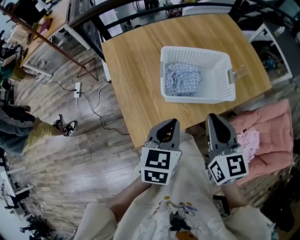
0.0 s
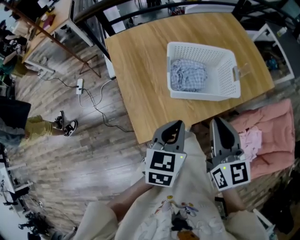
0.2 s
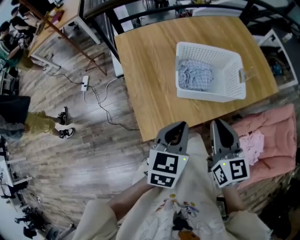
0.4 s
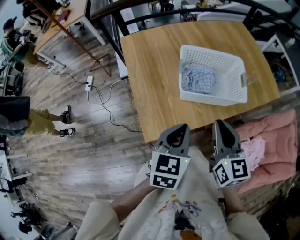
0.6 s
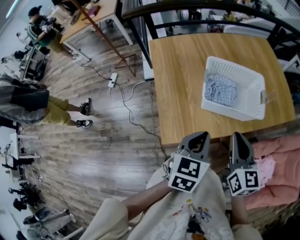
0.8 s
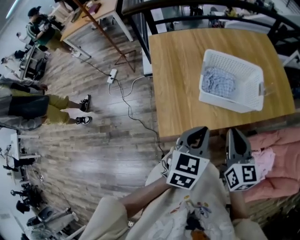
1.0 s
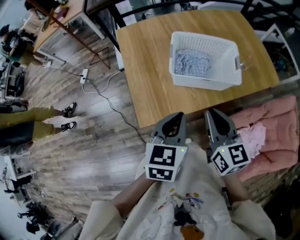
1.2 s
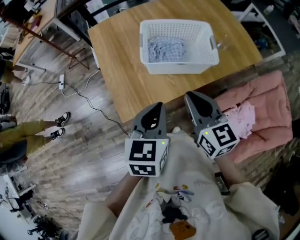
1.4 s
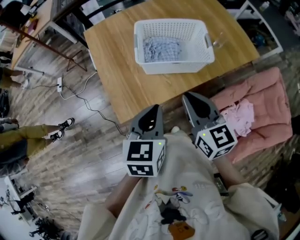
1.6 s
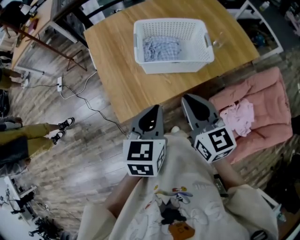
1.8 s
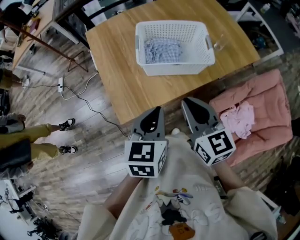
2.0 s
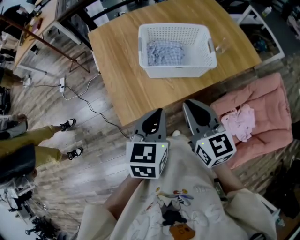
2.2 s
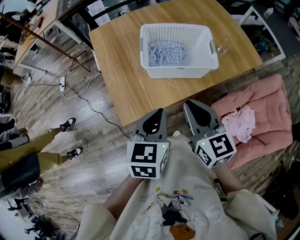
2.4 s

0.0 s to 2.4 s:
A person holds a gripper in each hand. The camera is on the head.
0.0 to 1.2 s: Both grippers travel together backward, roughly 5 cm.
1.2 to 2.4 s: The left gripper shifts by about 5 cm.

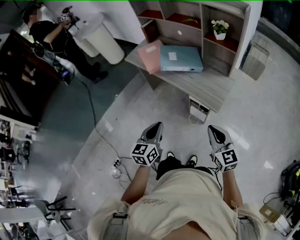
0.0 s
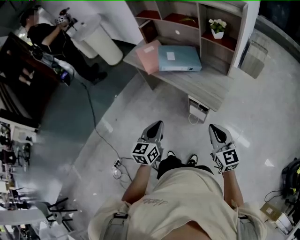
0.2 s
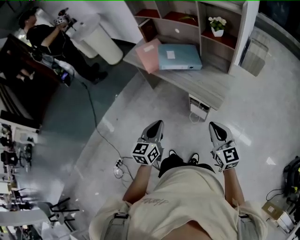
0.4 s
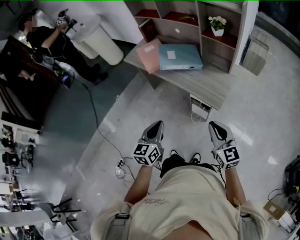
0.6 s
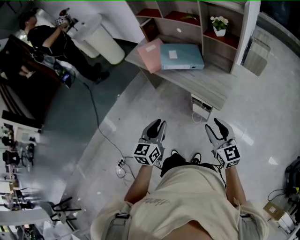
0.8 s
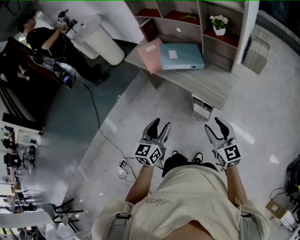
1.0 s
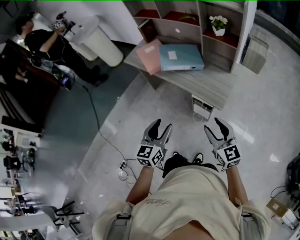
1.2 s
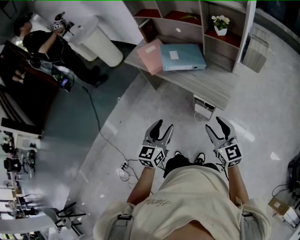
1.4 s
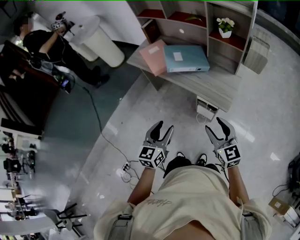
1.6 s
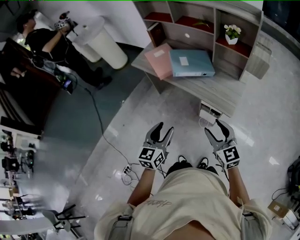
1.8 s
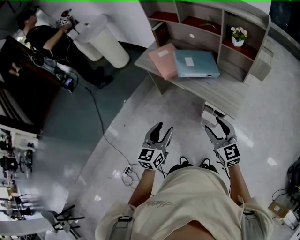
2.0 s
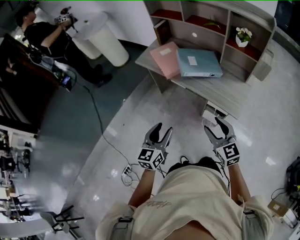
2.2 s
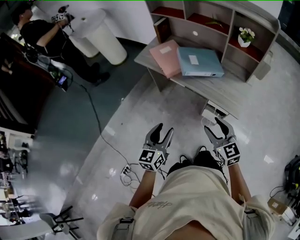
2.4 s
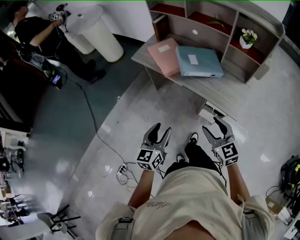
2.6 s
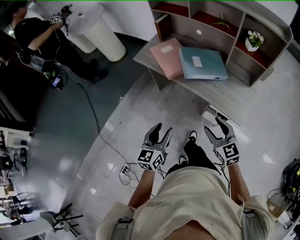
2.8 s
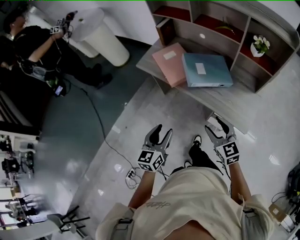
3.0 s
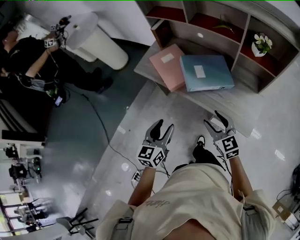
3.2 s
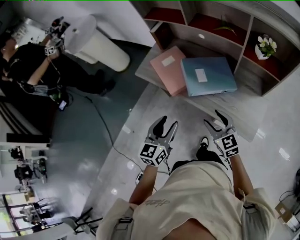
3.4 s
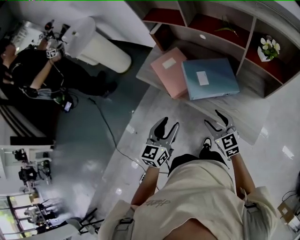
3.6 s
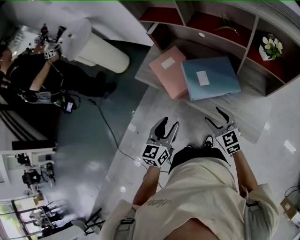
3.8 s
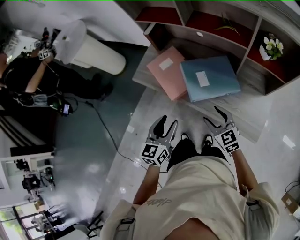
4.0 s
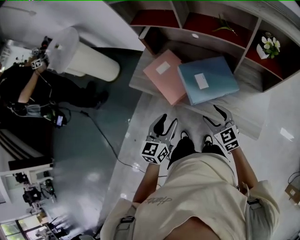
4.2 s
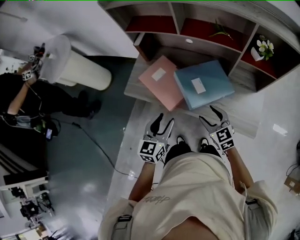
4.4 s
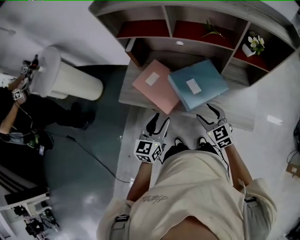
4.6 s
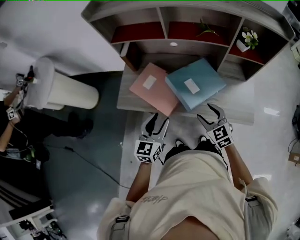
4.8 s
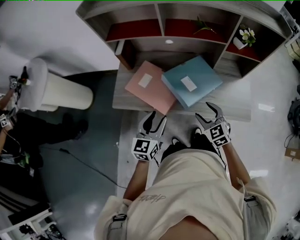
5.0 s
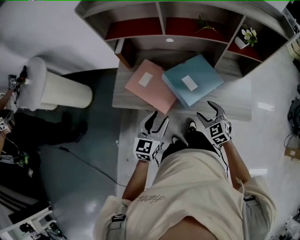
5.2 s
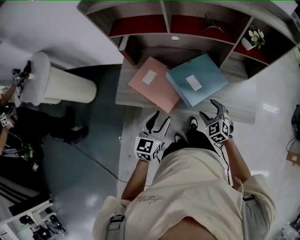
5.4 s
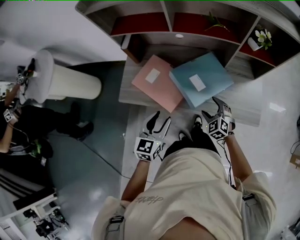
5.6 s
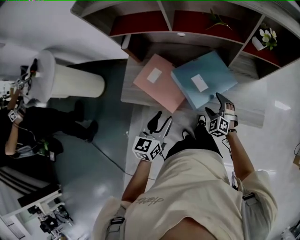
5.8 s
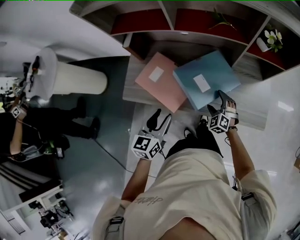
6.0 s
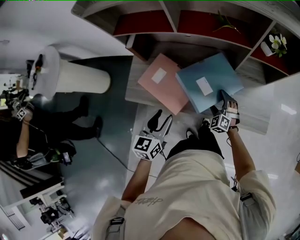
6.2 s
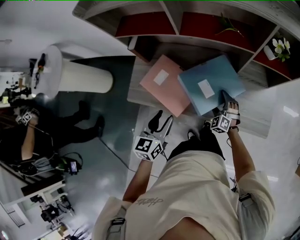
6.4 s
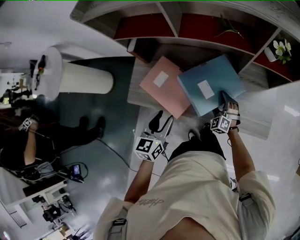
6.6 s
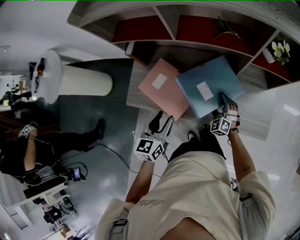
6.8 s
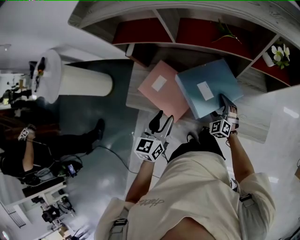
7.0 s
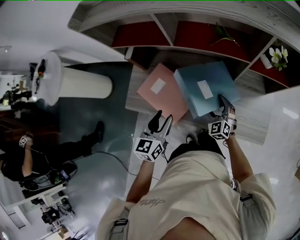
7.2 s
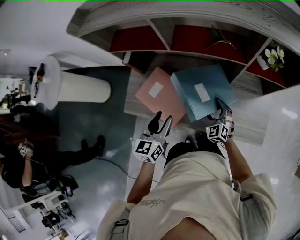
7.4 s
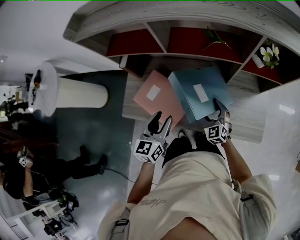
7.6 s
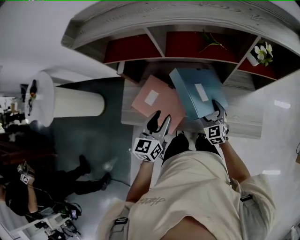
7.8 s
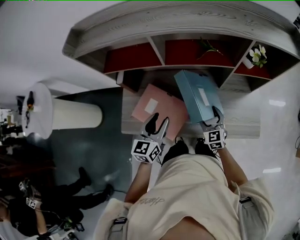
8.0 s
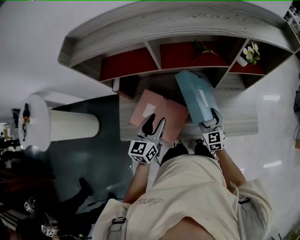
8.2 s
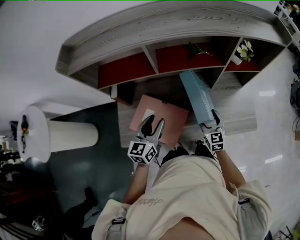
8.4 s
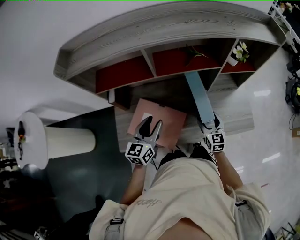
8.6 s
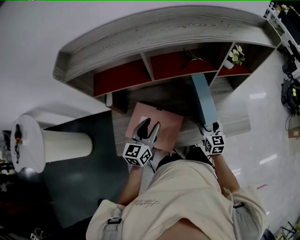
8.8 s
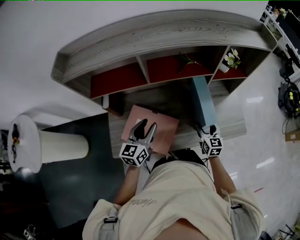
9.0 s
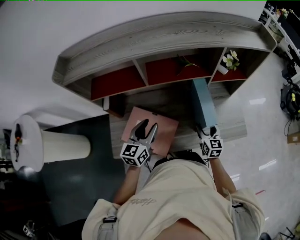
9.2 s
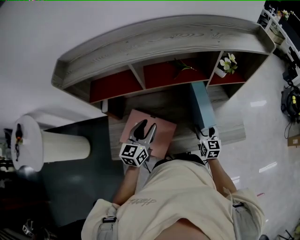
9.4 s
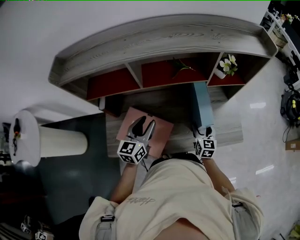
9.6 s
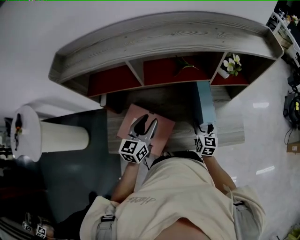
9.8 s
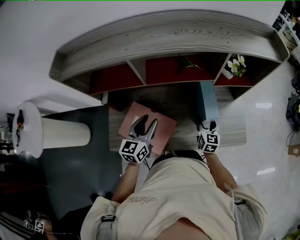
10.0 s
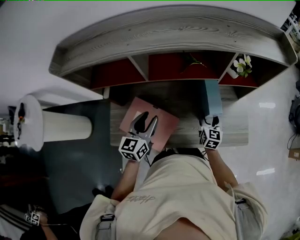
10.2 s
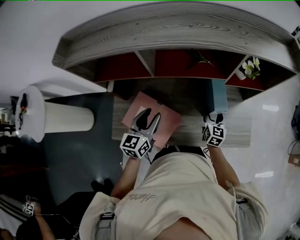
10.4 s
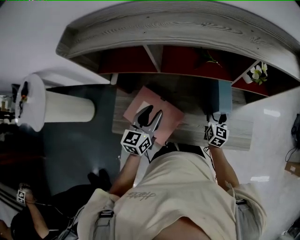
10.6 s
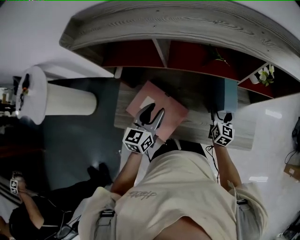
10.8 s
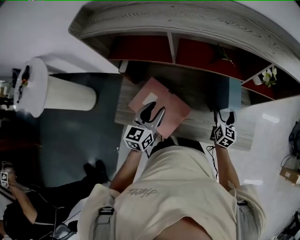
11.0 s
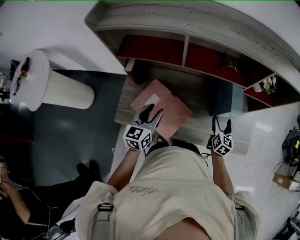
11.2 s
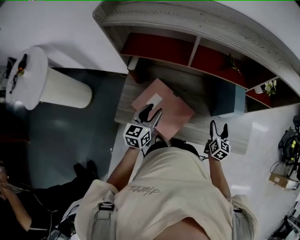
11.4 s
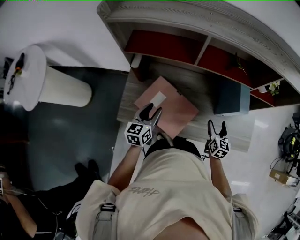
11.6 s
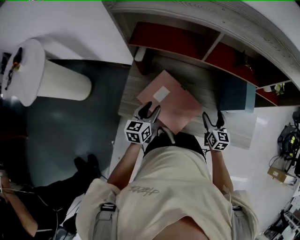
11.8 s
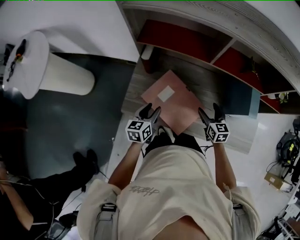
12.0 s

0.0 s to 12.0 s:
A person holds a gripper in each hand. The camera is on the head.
0.0 to 1.6 s: The left gripper opens; the right gripper moves to the left, some 5 cm, and opens.
1.6 to 3.0 s: Both grippers move forward and to the left, approximately 20 cm.
3.0 to 4.4 s: The grippers both shift forward by about 25 cm.
4.4 to 6.0 s: The right gripper is displaced downward and forward by roughly 20 cm, changes its angle by some 40 degrees, and opens its fingers. The left gripper moves forward, roughly 5 cm.
6.0 to 7.6 s: The right gripper goes some 5 cm upward, and changes its angle by roughly 20 degrees; the left gripper shifts some 10 cm forward.
7.6 to 9.0 s: The left gripper travels forward by approximately 10 cm, and rotates about 20 degrees. The right gripper shifts approximately 5 cm to the right, and twists roughly 40 degrees clockwise, seen from behind.
9.0 to 10.4 s: The right gripper goes about 10 cm forward.
10.4 to 12.0 s: The right gripper goes roughly 20 cm to the left, and changes its angle by some 30 degrees. Meanwhile the left gripper heads to the left, downward and backward, covering some 20 cm, and changes its angle by some 20 degrees.

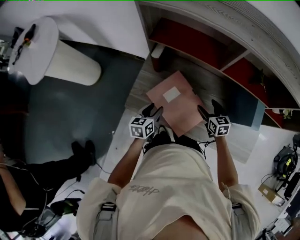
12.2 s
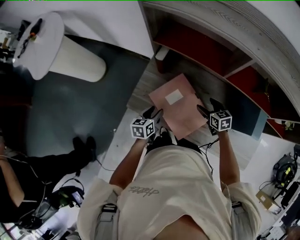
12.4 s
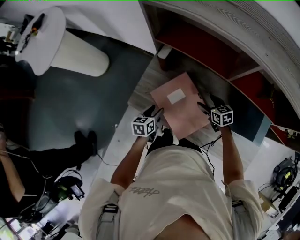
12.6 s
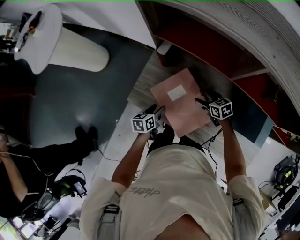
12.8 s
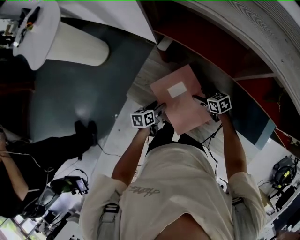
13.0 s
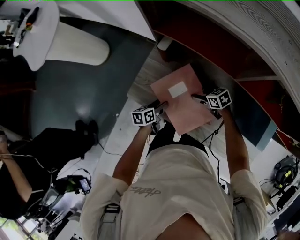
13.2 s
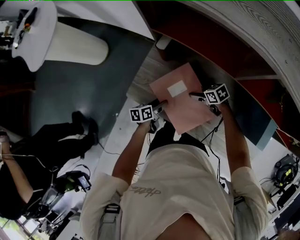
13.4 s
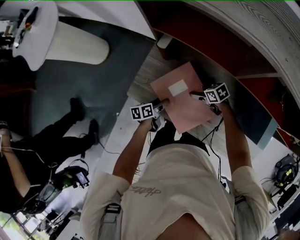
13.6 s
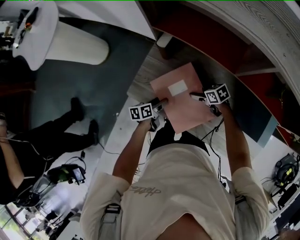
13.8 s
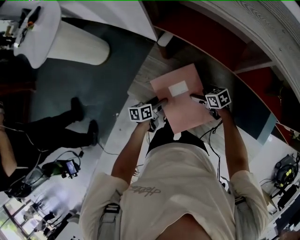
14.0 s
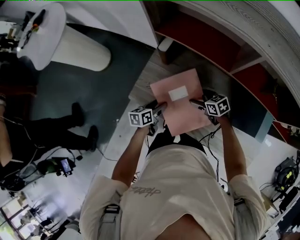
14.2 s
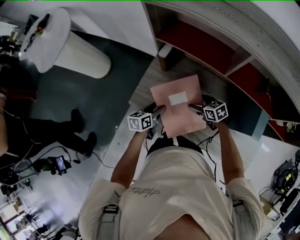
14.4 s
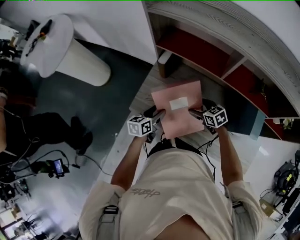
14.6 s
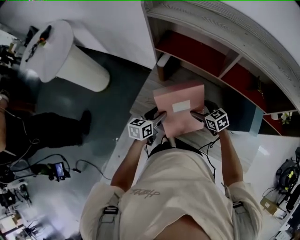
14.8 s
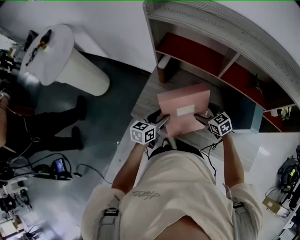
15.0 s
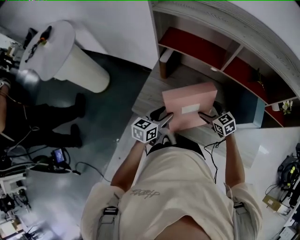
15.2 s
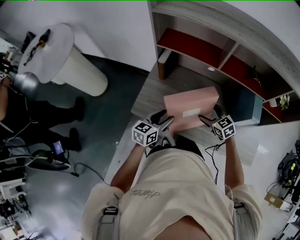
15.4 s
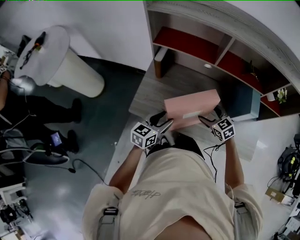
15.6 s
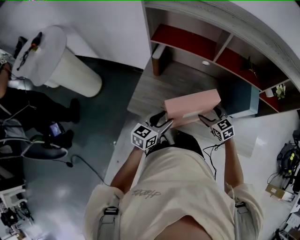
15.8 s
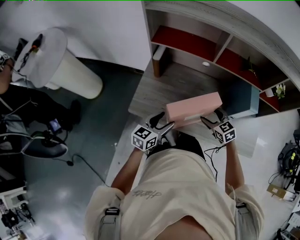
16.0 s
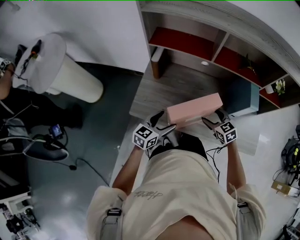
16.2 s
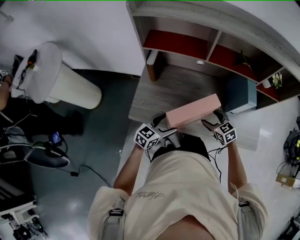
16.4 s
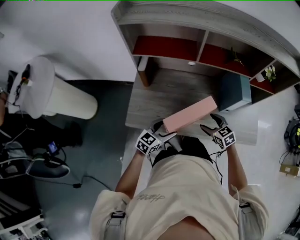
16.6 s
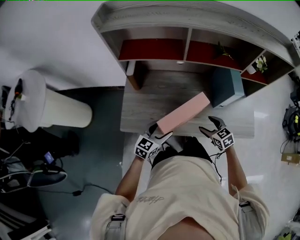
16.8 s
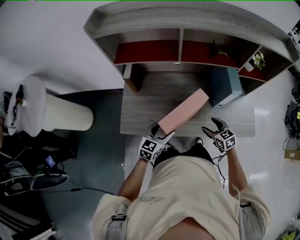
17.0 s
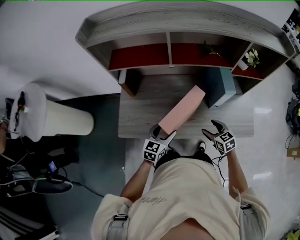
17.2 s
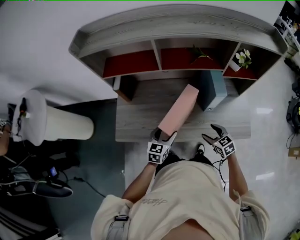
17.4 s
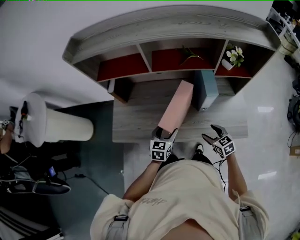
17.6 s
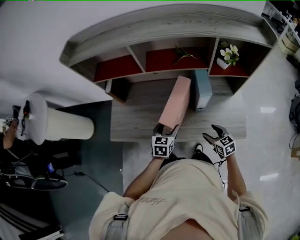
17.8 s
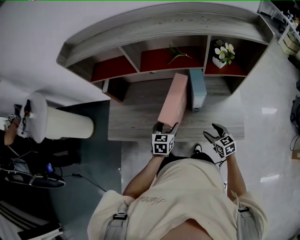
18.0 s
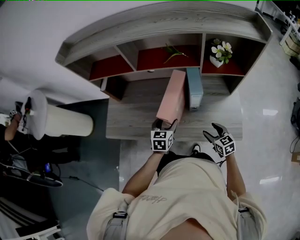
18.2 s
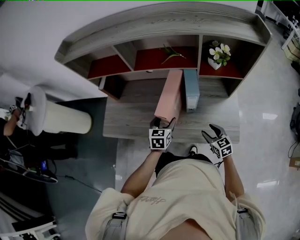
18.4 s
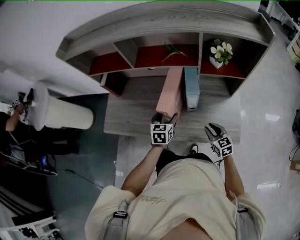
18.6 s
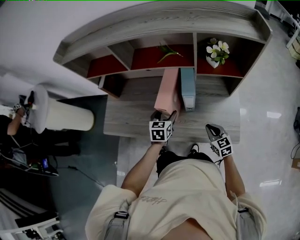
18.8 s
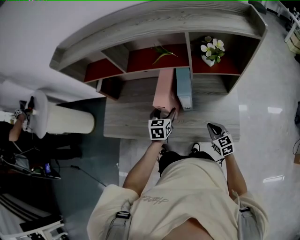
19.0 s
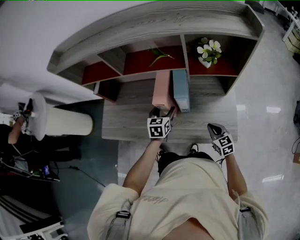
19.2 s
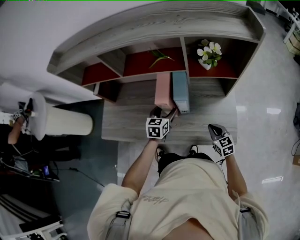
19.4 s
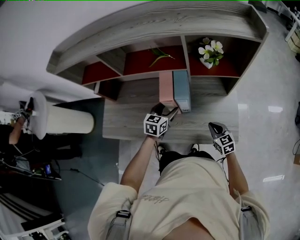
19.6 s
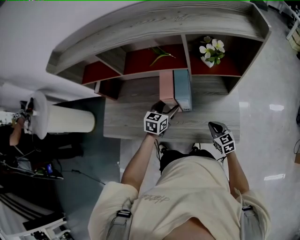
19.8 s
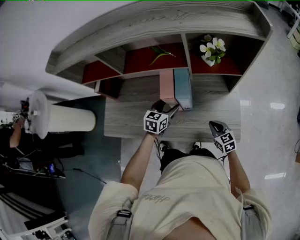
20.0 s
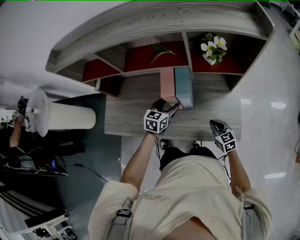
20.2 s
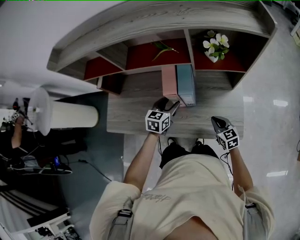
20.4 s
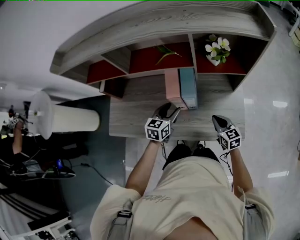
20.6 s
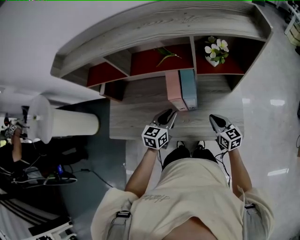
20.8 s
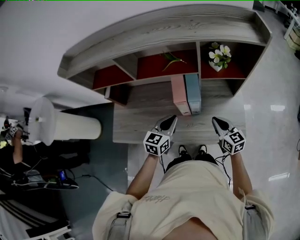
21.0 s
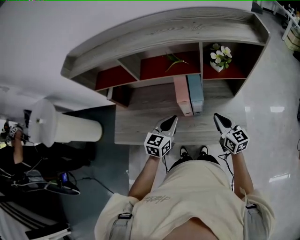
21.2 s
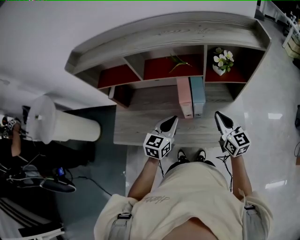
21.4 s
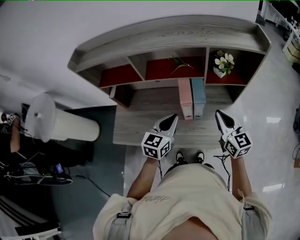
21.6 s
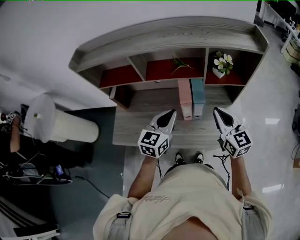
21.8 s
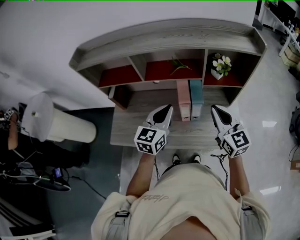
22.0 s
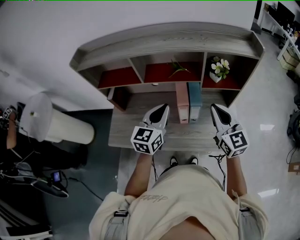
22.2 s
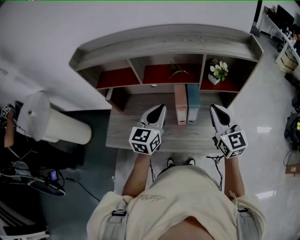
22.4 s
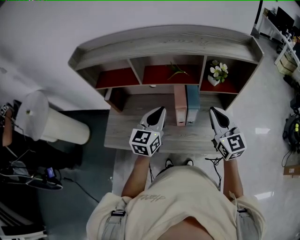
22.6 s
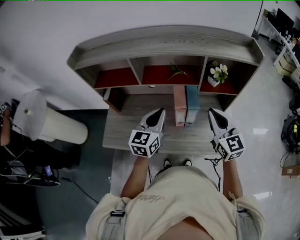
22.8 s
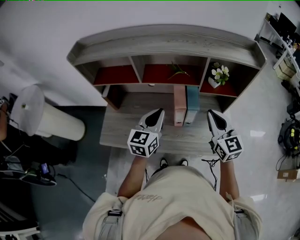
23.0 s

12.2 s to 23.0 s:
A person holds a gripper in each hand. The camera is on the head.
12.2 to 13.8 s: The right gripper travels downward, to the left and forward by roughly 15 cm, and rotates approximately 40 degrees; the left gripper goes roughly 10 cm downward, and changes its angle by some 30 degrees.
13.8 to 15.2 s: The left gripper goes approximately 20 cm upward, and changes its angle by some 40 degrees. The right gripper goes some 15 cm upward and backward, and rotates roughly 40 degrees.
15.2 to 16.8 s: The left gripper goes approximately 10 cm to the right and backward, and turns by approximately 30 degrees, while the right gripper heads backward and to the right, covering roughly 15 cm, and turns by approximately 20 degrees.
16.8 to 18.4 s: The two grippers go some 20 cm to the right. The left gripper swivels some 30 degrees.
18.4 to 20.0 s: The left gripper goes some 10 cm to the right and forward. Meanwhile the right gripper ends up roughly 5 cm from where it was, and closes up.
20.0 to 21.4 s: The right gripper is displaced upward by some 25 cm, and changes its angle by about 30 degrees, while the left gripper moves upward and backward, approximately 15 cm, and closes its fingers.
21.4 to 23.0 s: The two grippers go about 10 cm upward.
